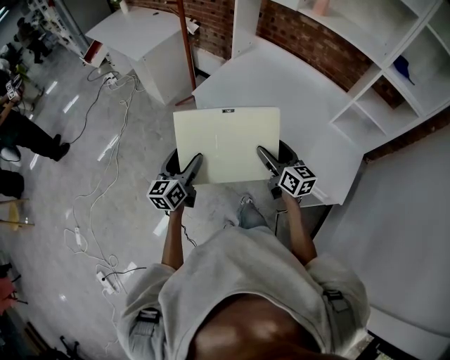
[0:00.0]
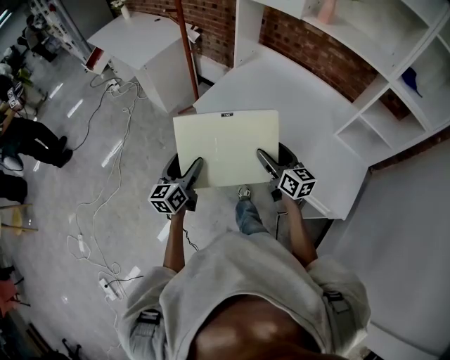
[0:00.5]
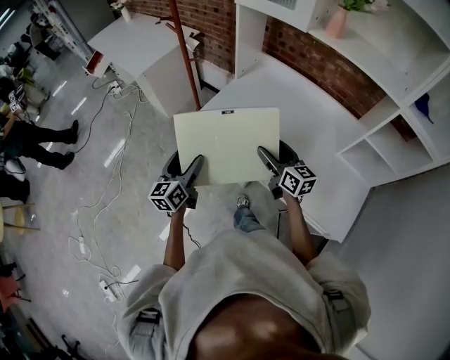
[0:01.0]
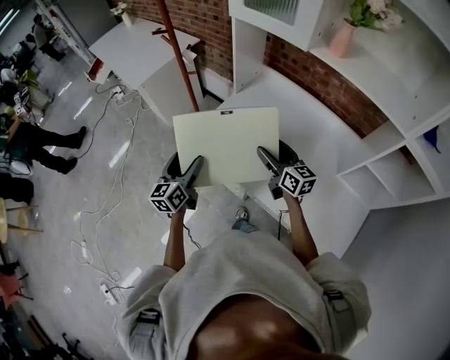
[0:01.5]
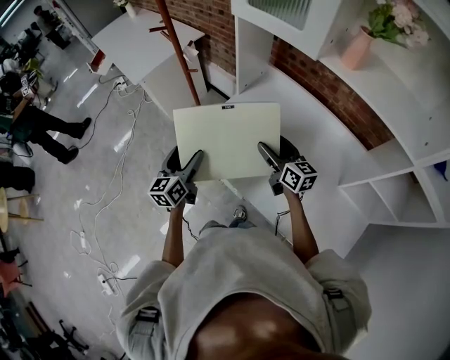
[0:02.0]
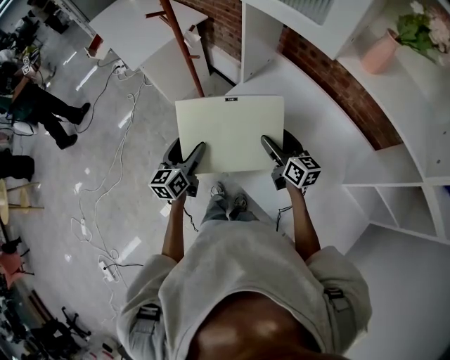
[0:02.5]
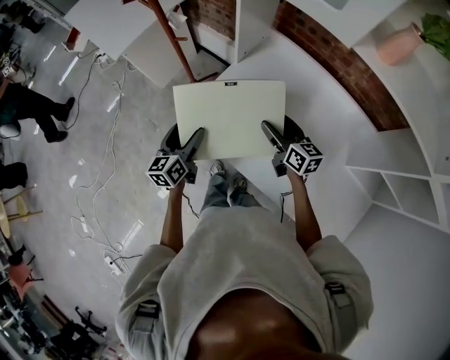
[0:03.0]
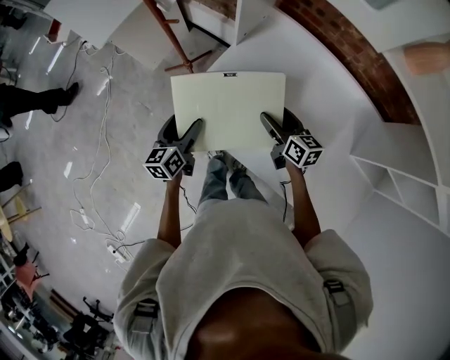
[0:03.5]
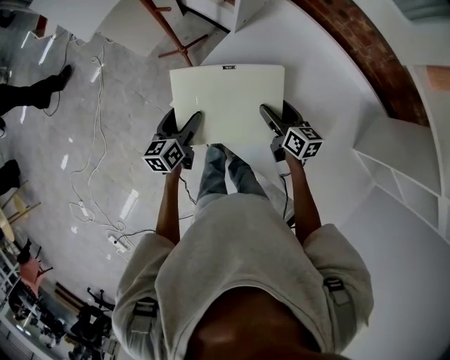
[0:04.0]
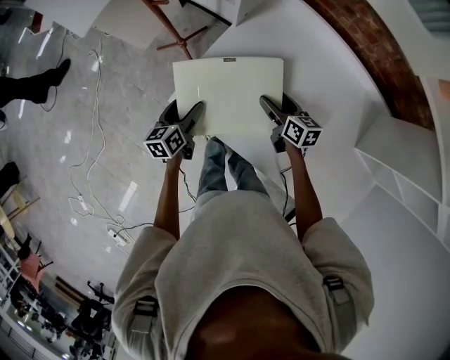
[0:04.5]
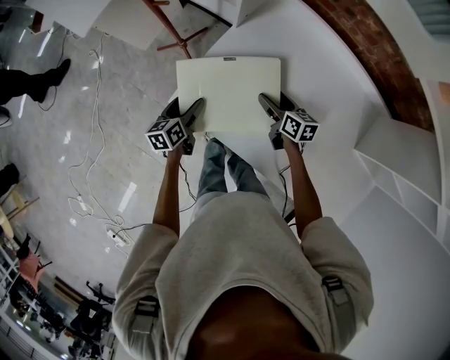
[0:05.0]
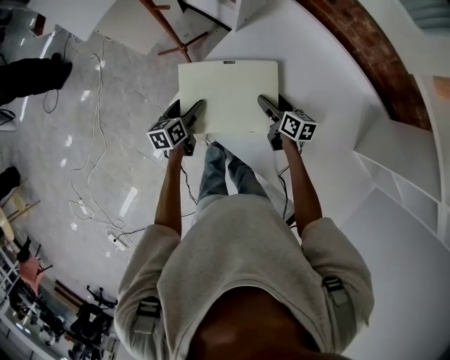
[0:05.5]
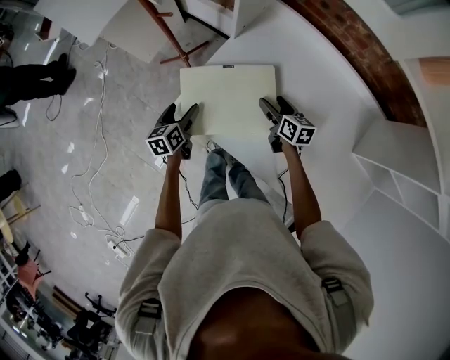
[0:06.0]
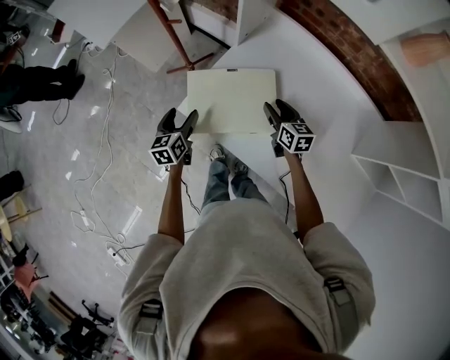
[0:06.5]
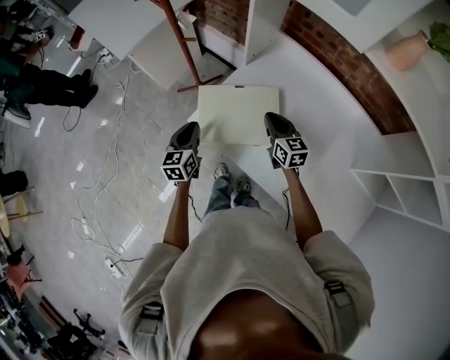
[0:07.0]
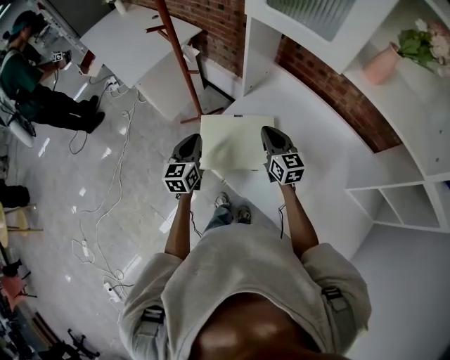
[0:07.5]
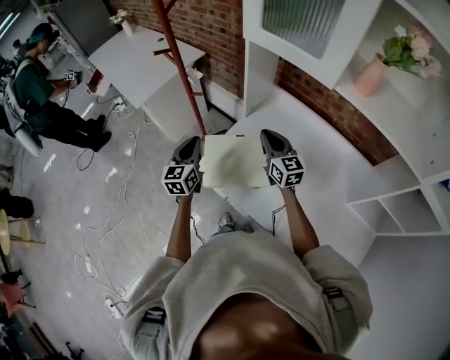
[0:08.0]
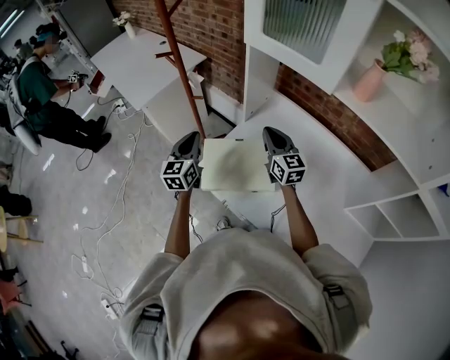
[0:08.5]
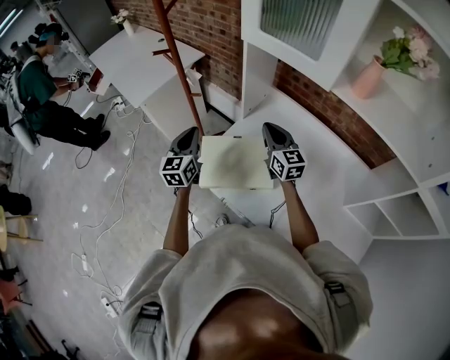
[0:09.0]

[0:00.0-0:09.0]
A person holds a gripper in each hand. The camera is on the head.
0:00.0 to 0:02.0: The two grippers go about 35 cm forward.
0:02.0 to 0:04.5: The two grippers go approximately 25 cm downward and forward. The left gripper swivels roughly 30 degrees. The right gripper changes its angle by about 30 degrees.
0:04.5 to 0:07.0: The grippers both shift upward by roughly 10 cm. The left gripper rotates some 20 degrees, and closes. The right gripper changes its angle by roughly 30 degrees, and closes up.
0:07.0 to 0:09.0: The grippers both shift upward and forward by about 15 cm.

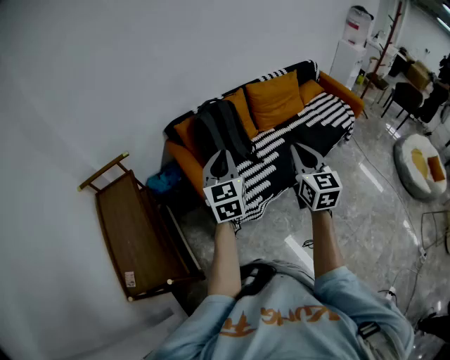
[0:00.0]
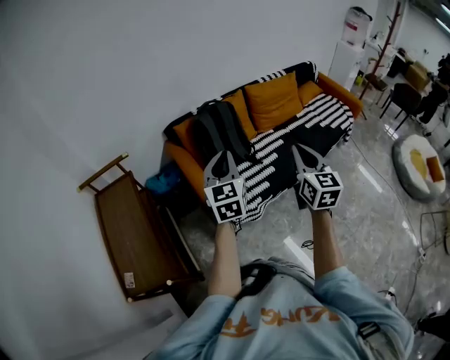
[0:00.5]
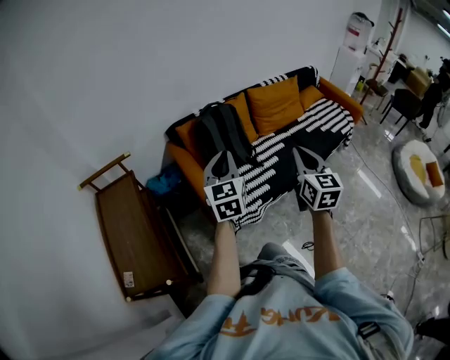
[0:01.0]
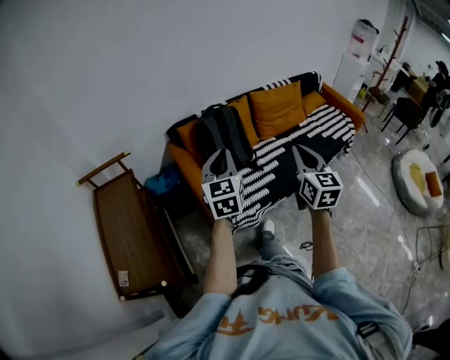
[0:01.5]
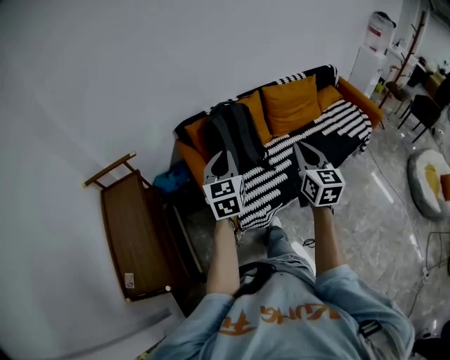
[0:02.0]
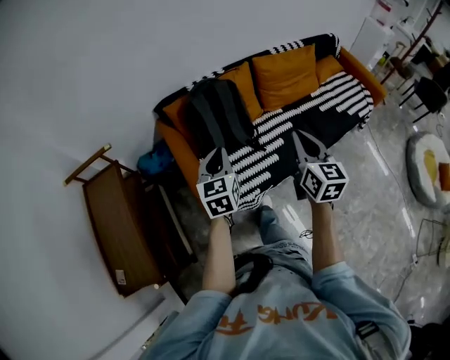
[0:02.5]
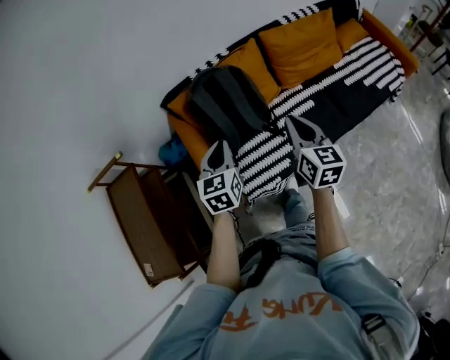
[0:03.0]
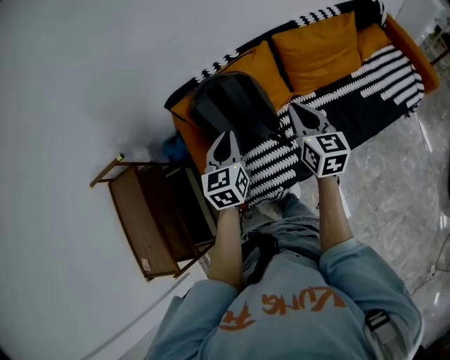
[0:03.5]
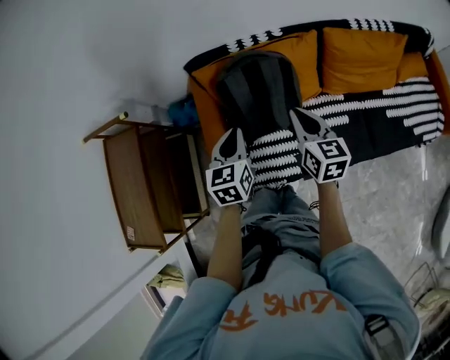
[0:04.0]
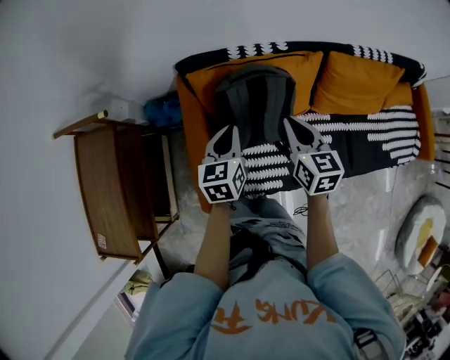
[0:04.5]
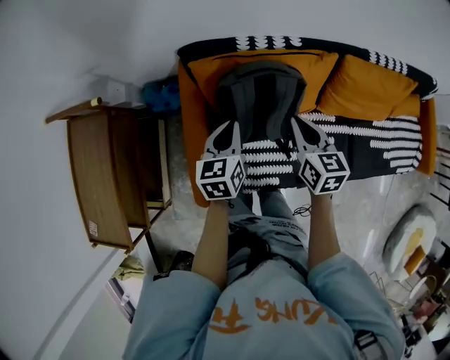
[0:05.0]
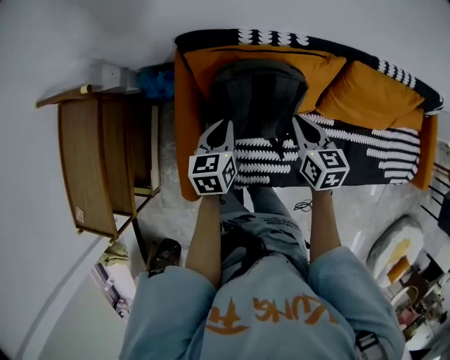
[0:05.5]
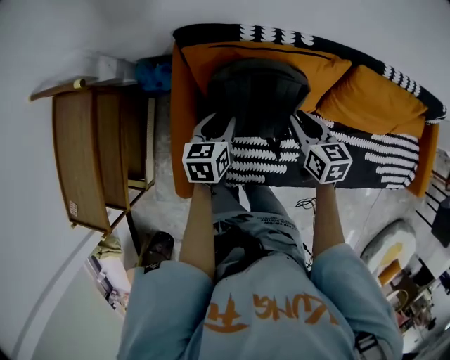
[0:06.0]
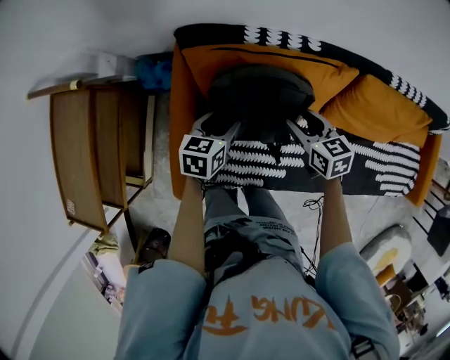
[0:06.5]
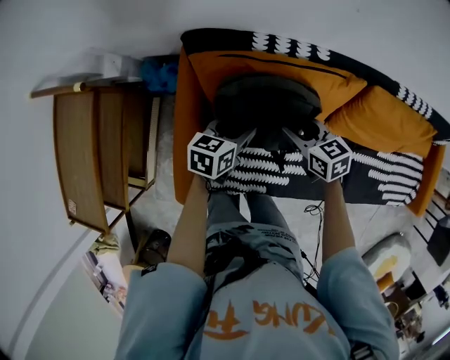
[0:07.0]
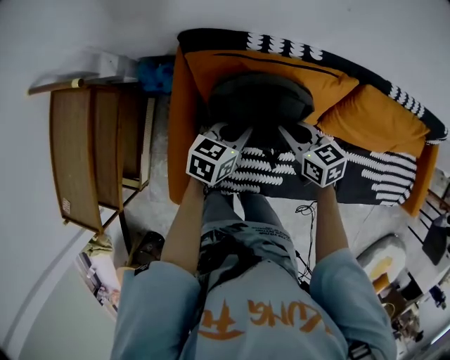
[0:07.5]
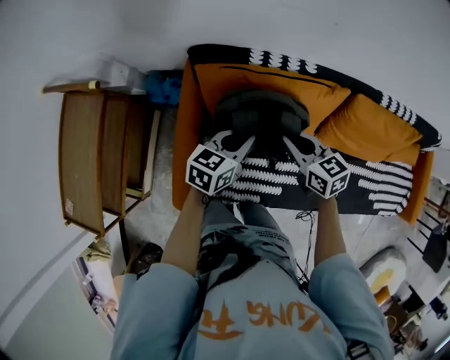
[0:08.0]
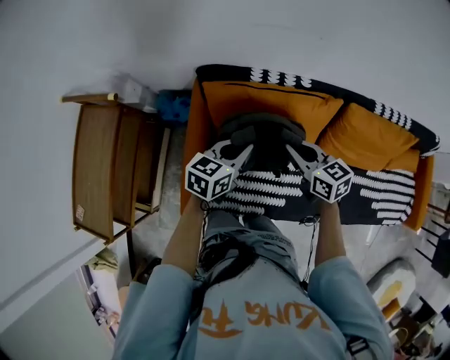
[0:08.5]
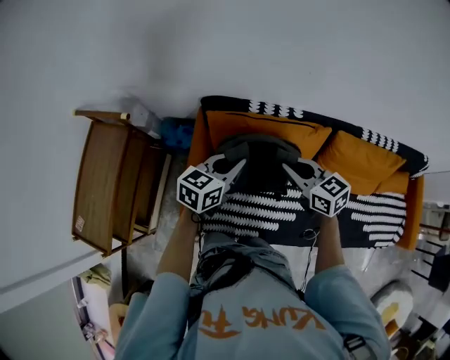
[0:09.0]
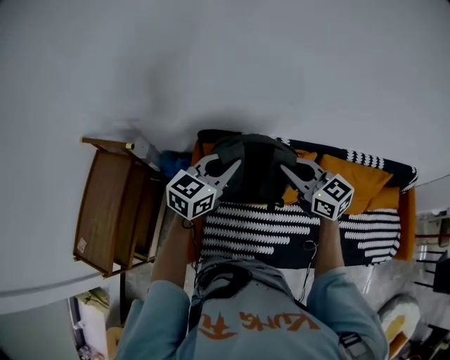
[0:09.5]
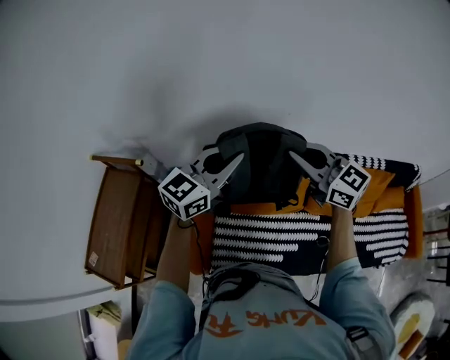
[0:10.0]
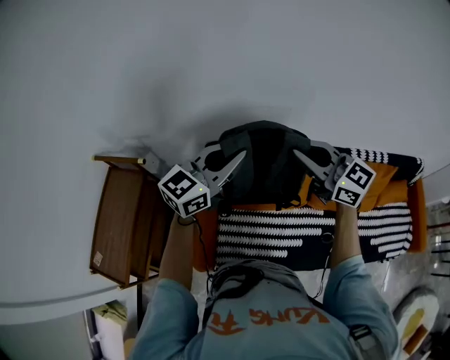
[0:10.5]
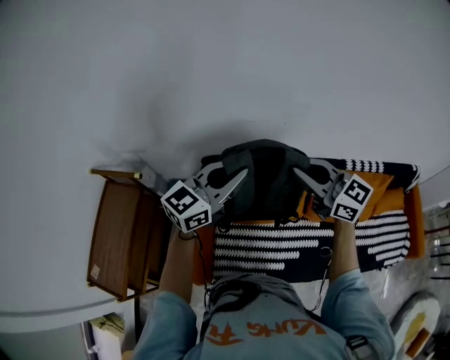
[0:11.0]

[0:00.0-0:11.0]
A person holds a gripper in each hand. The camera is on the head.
0:00.0 to 0:02.0: Both grippers travel together forward, roughly 10 cm.
0:02.0 to 0:03.5: The left gripper shifts approximately 30 cm forward, to the right and downward, while the right gripper shifts approximately 30 cm forward, and turns by approximately 20 degrees.
0:03.5 to 0:05.5: The right gripper shifts roughly 25 cm forward, downward and to the left, and turns by roughly 30 degrees. Meanwhile the left gripper goes about 20 cm downward, forward and to the left, and swivels roughly 30 degrees.
0:05.5 to 0:07.5: The right gripper goes roughly 5 cm downward, changes its angle by approximately 20 degrees, and opens, then closes once more; the left gripper shifts about 5 cm to the right, rotates approximately 20 degrees, and opens, then closes again.
0:07.5 to 0:09.0: The grippers both shift upward by roughly 20 cm.
0:09.0 to 0:11.0: The two grippers go approximately 20 cm upward. The right gripper swivels some 30 degrees. The left gripper swivels about 30 degrees.

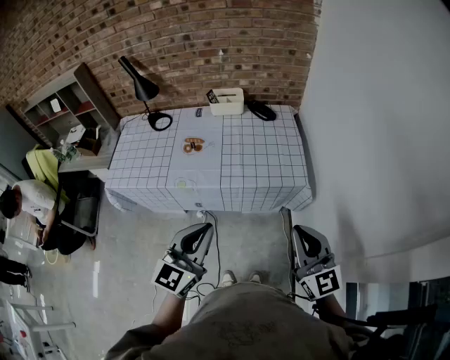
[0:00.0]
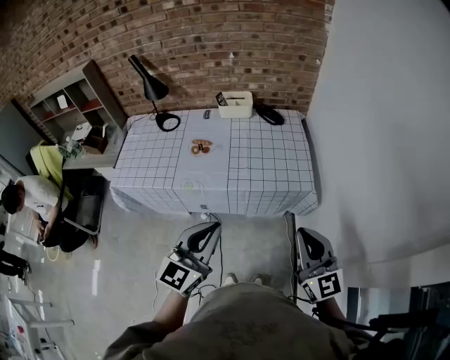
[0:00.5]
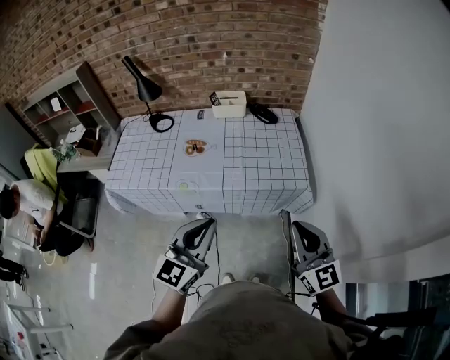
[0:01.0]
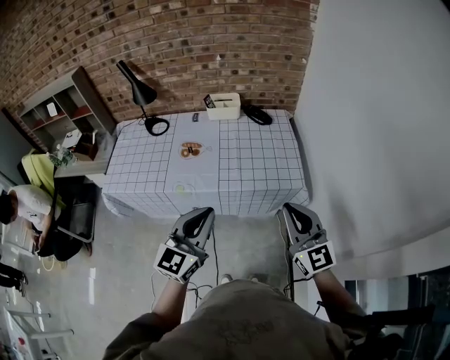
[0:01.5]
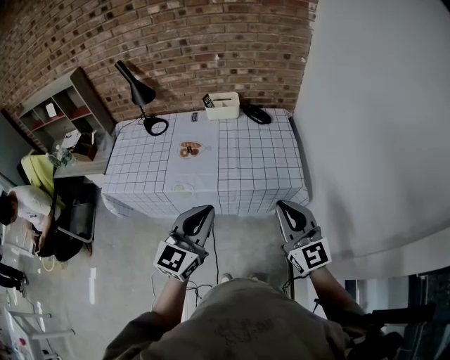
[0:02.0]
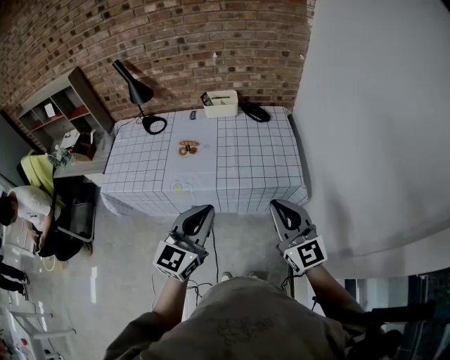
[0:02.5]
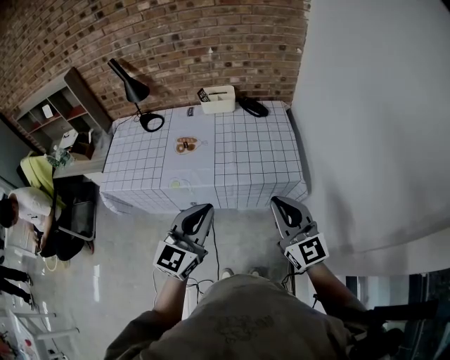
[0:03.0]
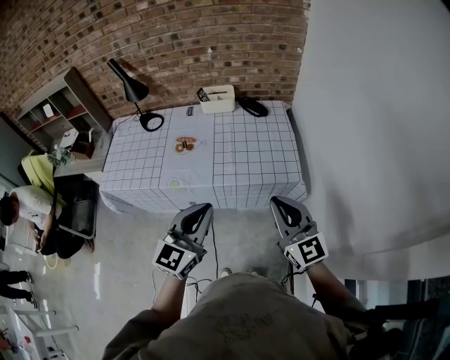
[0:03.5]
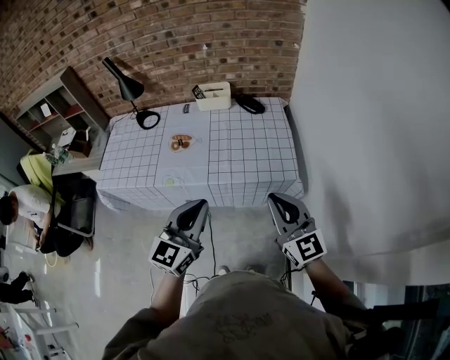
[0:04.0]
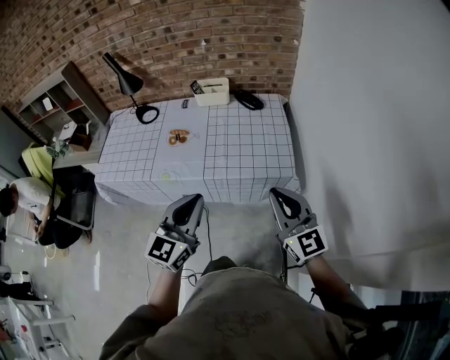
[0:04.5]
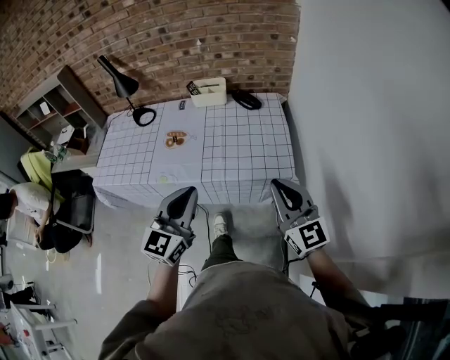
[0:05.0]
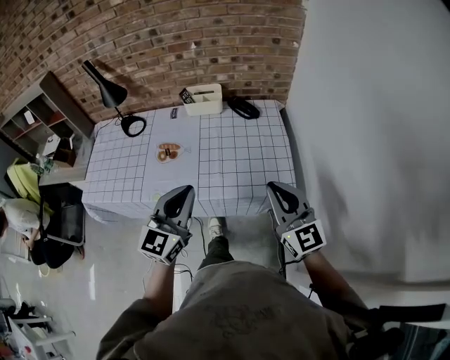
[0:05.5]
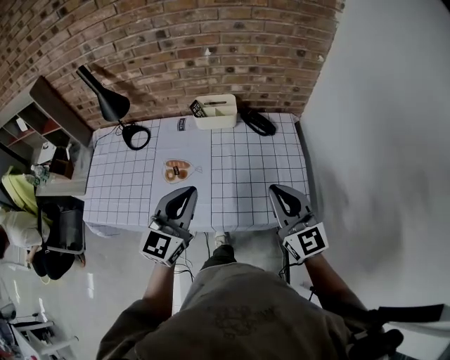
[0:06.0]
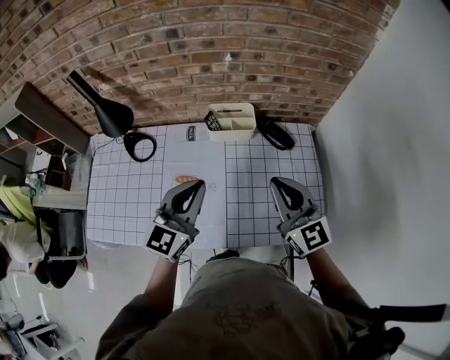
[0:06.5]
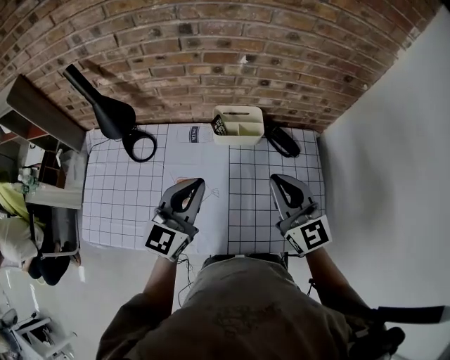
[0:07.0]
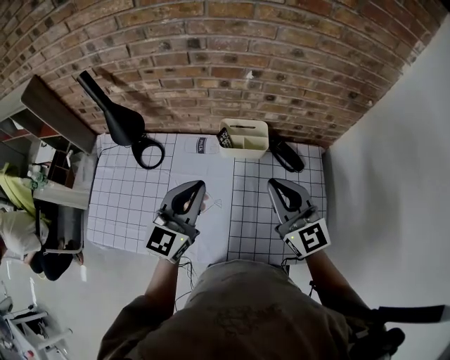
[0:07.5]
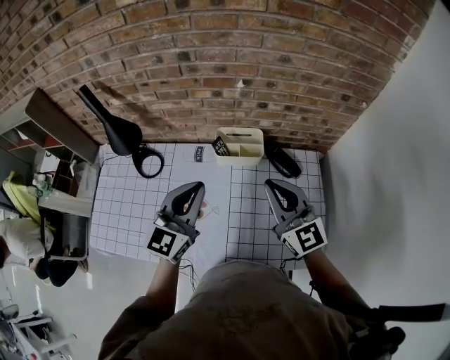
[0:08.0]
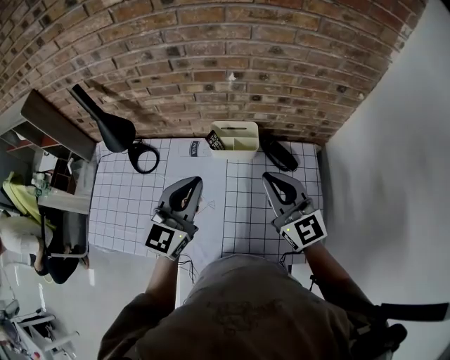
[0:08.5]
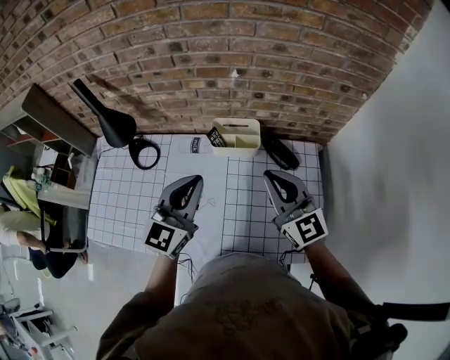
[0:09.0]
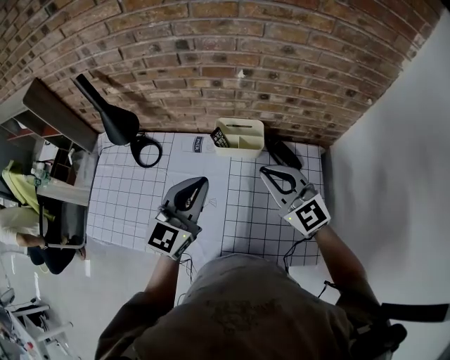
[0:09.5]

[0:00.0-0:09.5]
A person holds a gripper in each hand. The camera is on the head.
0:00.0 to 0:02.0: The right gripper shifts about 5 cm forward. Meanwhile the left gripper shifts by about 5 cm.
0:02.0 to 0:04.0: The right gripper shifts by approximately 5 cm, while the left gripper changes place by roughly 5 cm.
0:04.0 to 0:05.5: Both grippers move forward, roughly 15 cm.
0:05.5 to 0:07.5: The left gripper goes about 35 cm forward. Meanwhile the right gripper goes approximately 40 cm forward and to the left.
0:07.5 to 0:09.5: The grippers make only small movements.
